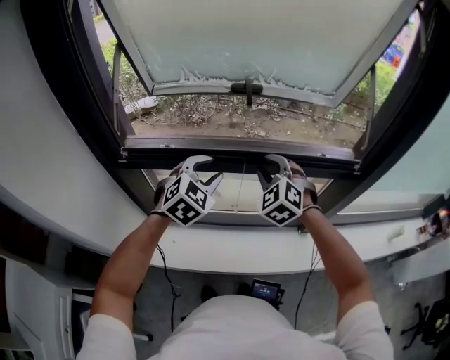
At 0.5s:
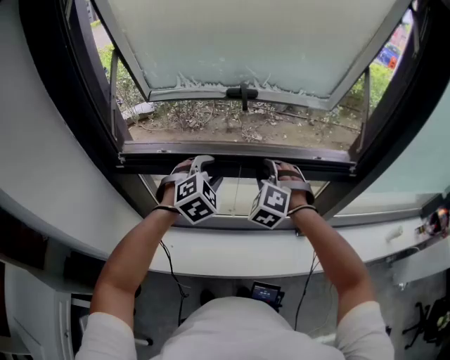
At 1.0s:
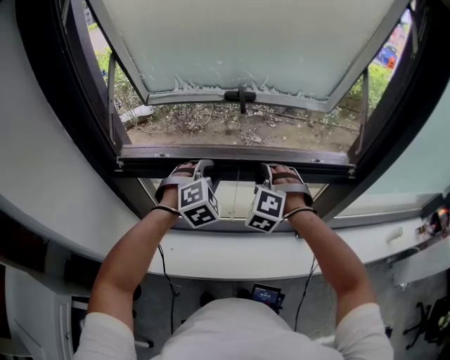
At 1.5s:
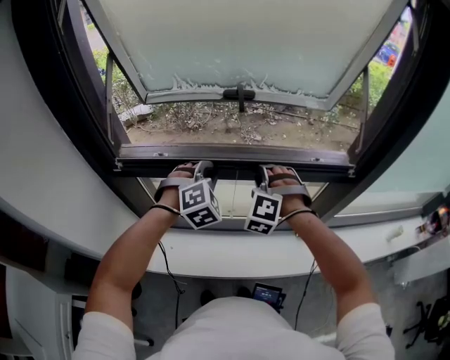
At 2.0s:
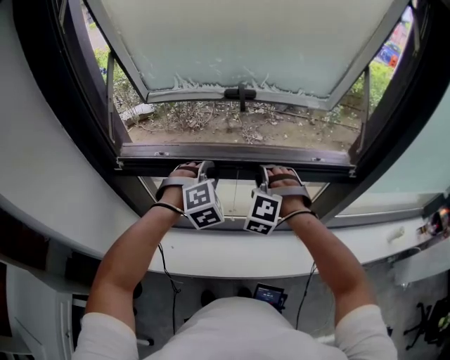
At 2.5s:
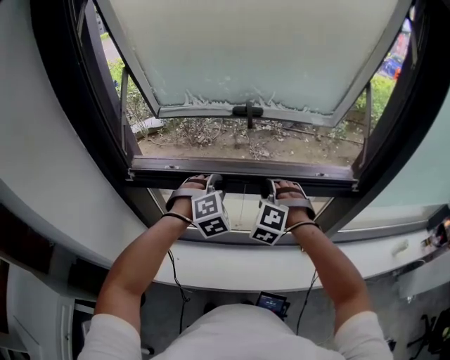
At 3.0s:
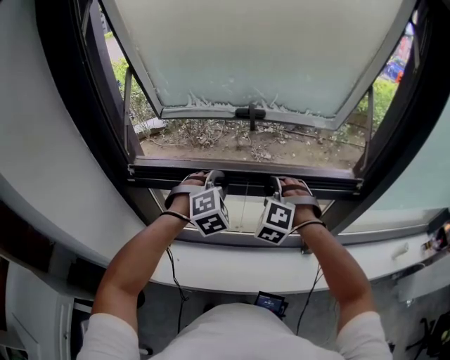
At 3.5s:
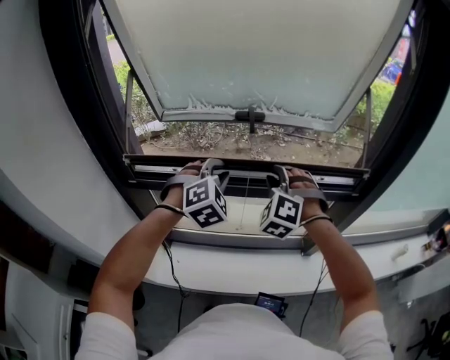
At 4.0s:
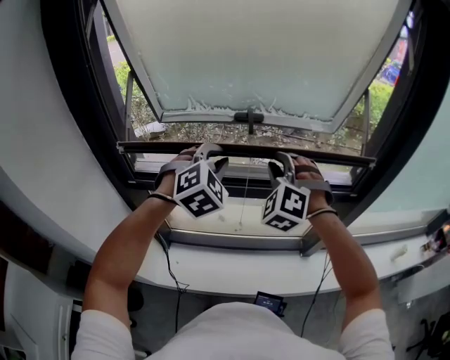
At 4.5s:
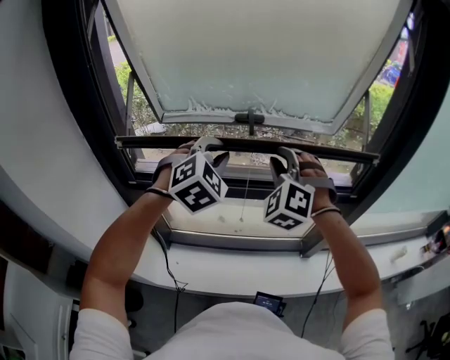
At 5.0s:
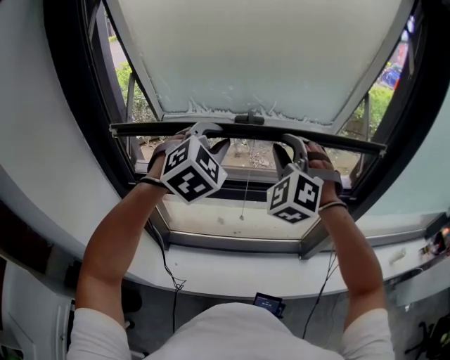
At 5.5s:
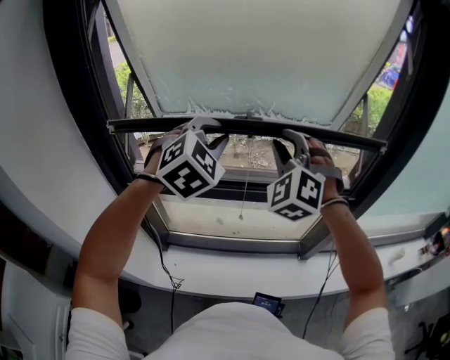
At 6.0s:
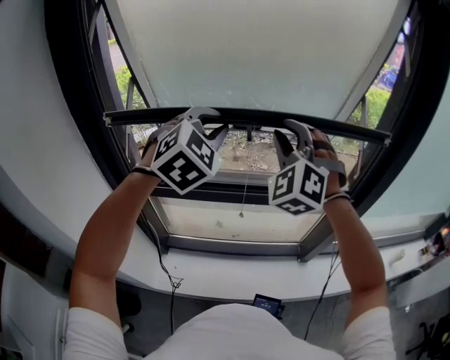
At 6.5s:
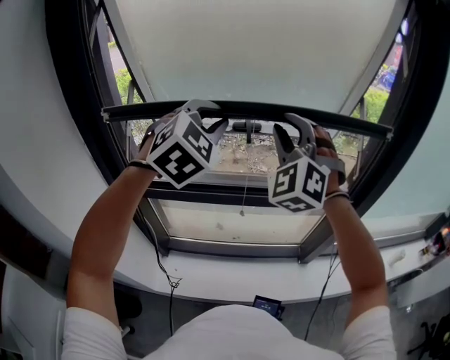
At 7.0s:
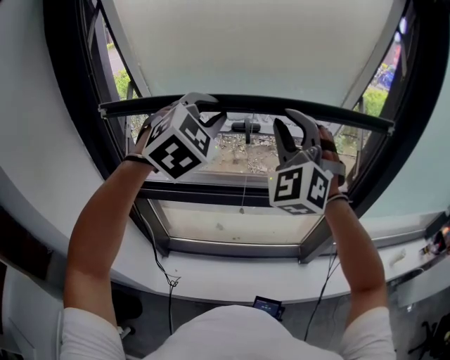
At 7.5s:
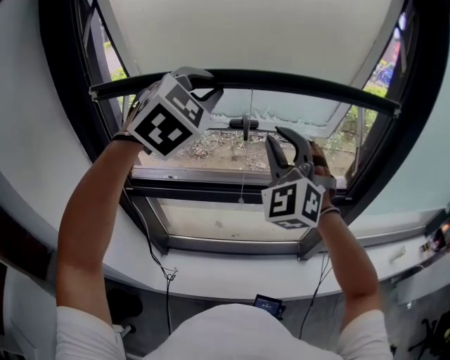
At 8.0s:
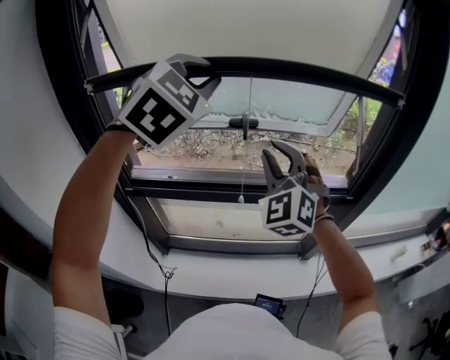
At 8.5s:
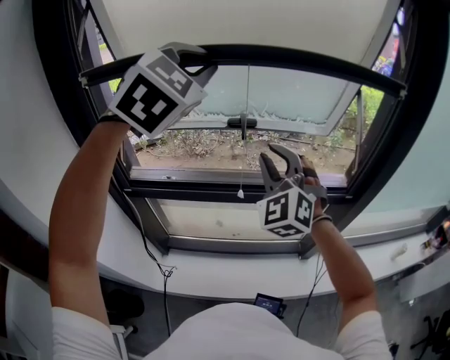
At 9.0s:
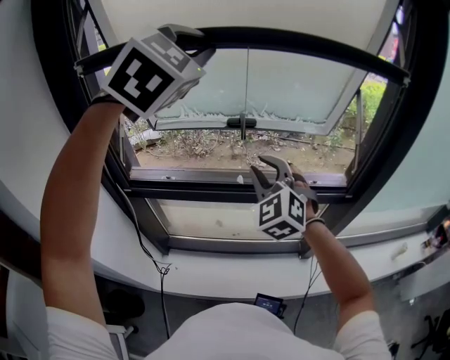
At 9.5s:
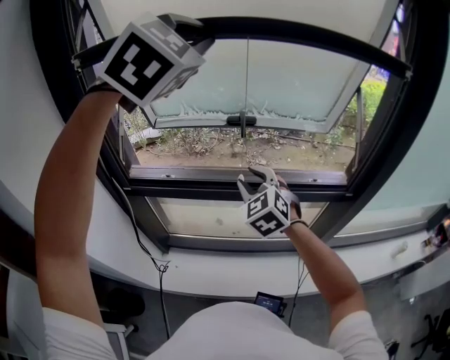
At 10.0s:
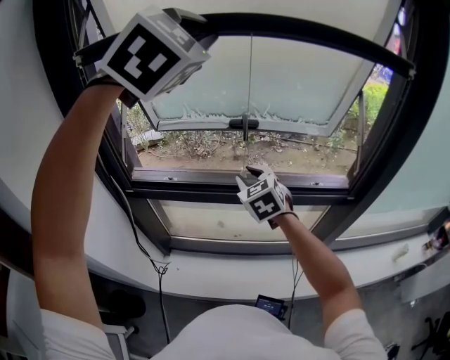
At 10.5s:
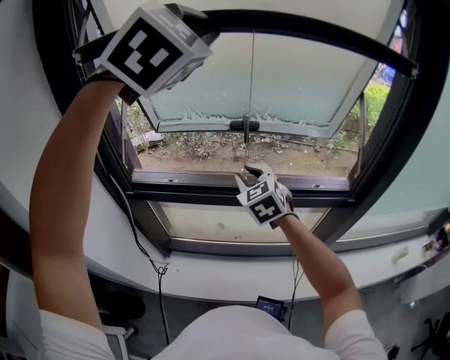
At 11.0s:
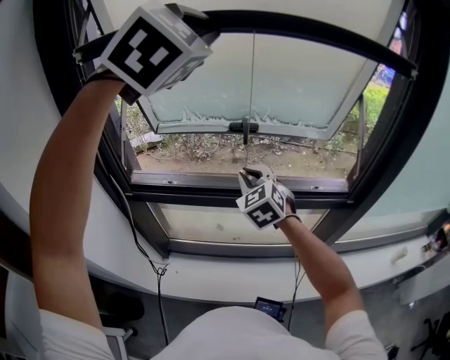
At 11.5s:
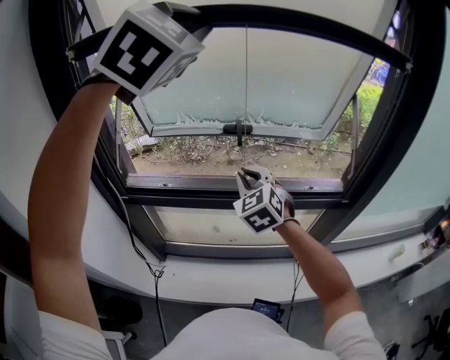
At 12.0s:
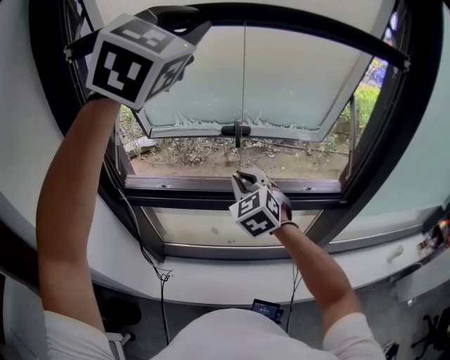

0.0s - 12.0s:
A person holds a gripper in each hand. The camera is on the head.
0.0s - 2.0s: The left gripper changes its angle by some 30 degrees, and closes up; the right gripper swivels roughly 30 degrees.
2.0s - 4.0s: The two grippers go roughly 15 cm upward.
4.0s - 6.0s: Both grippers move upward, some 15 cm.
6.0s - 8.0s: The left gripper moves upward, about 10 cm.
8.0s - 10.0s: The left gripper travels upward by roughly 10 cm, while the right gripper goes roughly 15 cm downward, and turns by about 40 degrees.
10.0s - 12.0s: The right gripper closes.

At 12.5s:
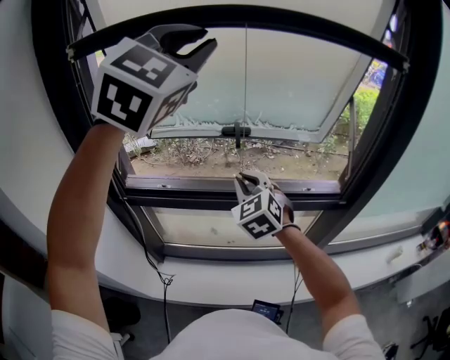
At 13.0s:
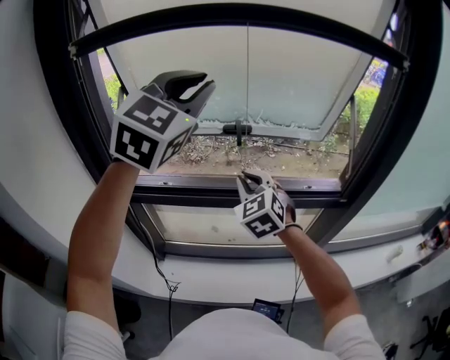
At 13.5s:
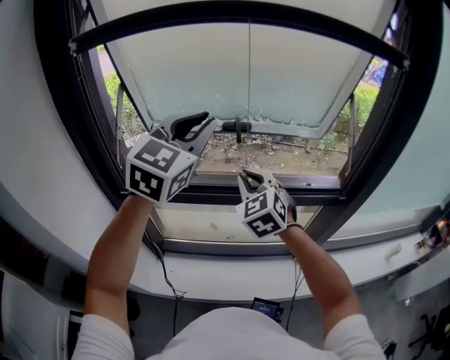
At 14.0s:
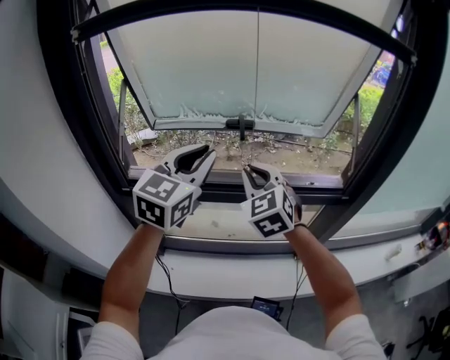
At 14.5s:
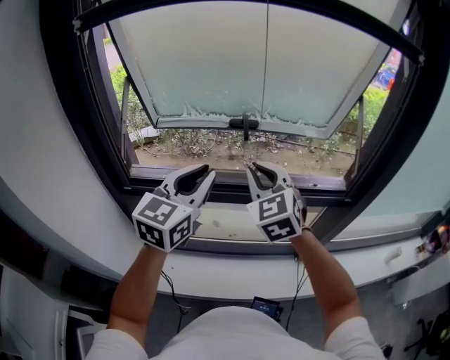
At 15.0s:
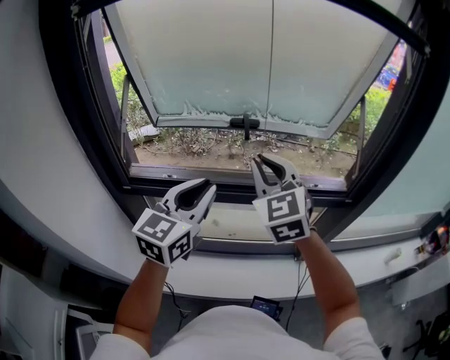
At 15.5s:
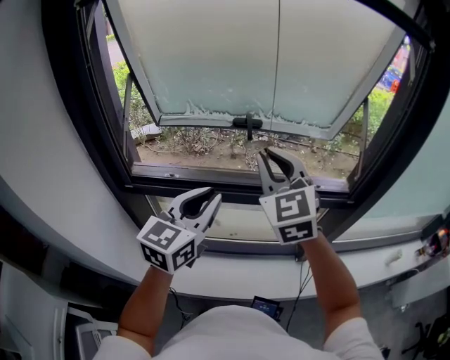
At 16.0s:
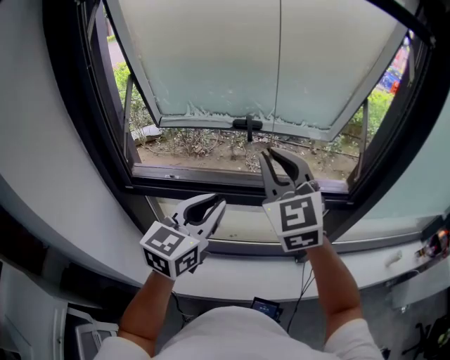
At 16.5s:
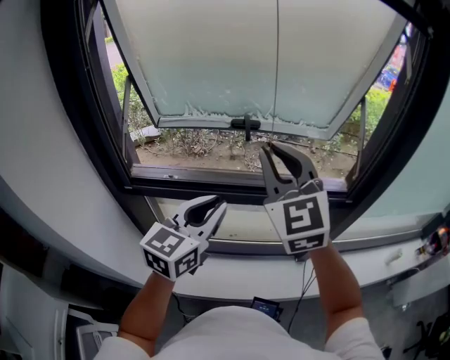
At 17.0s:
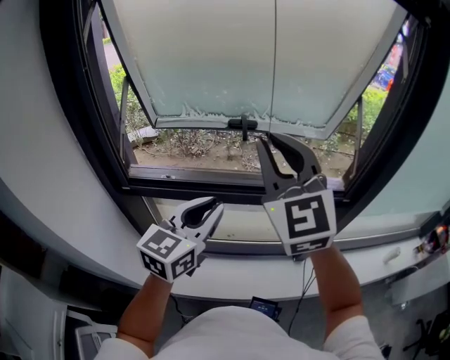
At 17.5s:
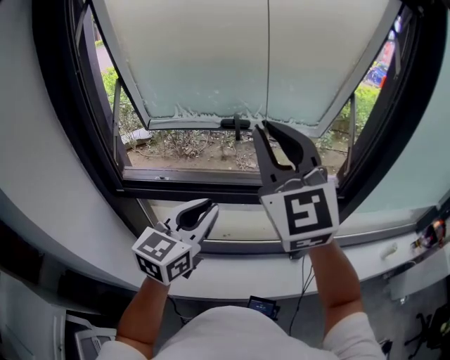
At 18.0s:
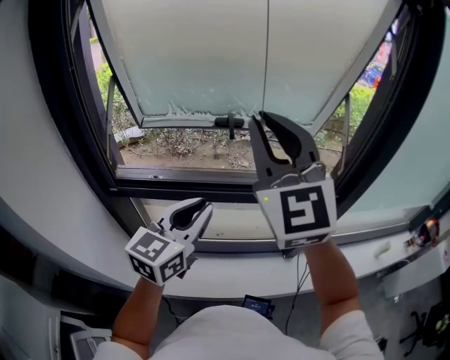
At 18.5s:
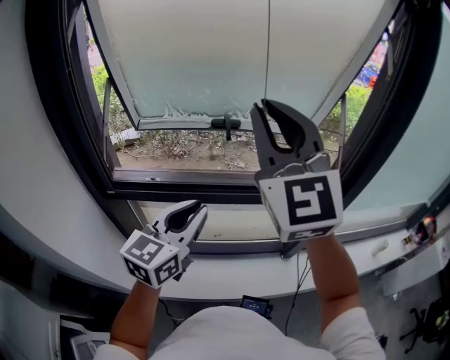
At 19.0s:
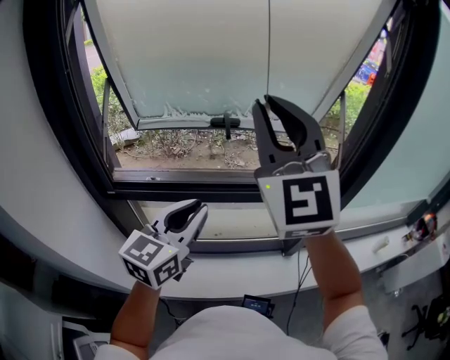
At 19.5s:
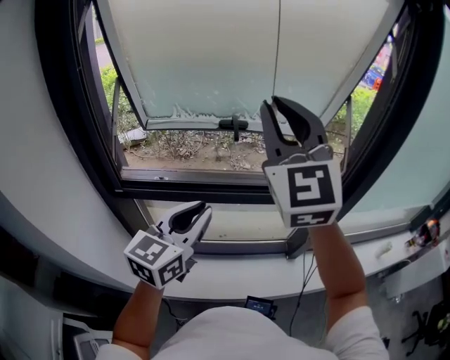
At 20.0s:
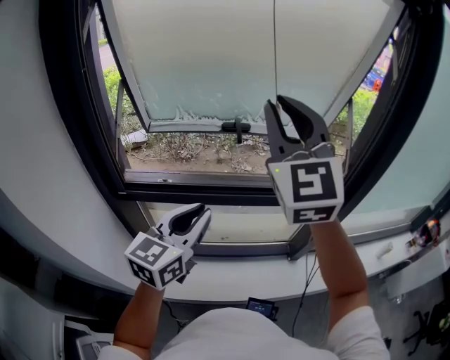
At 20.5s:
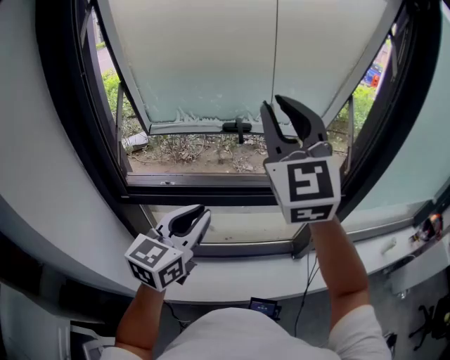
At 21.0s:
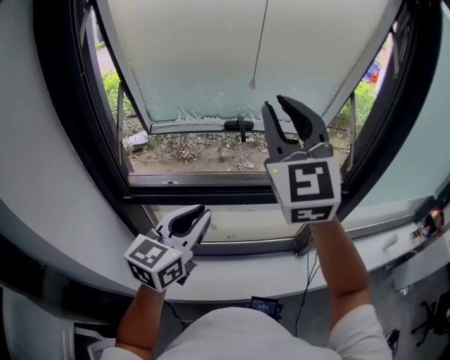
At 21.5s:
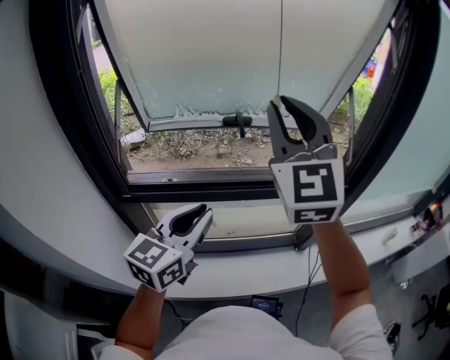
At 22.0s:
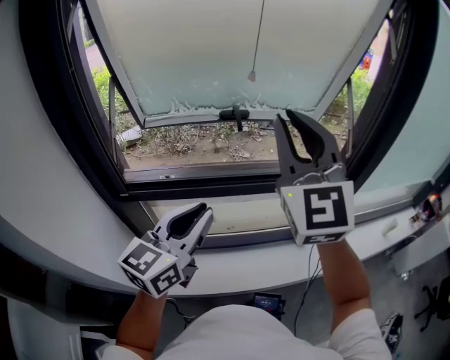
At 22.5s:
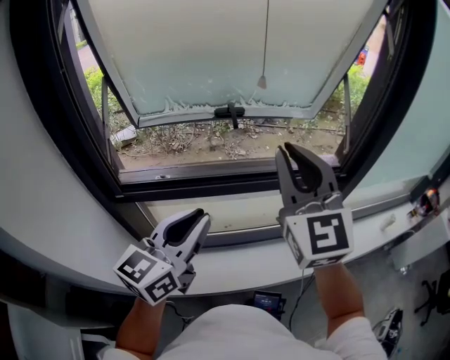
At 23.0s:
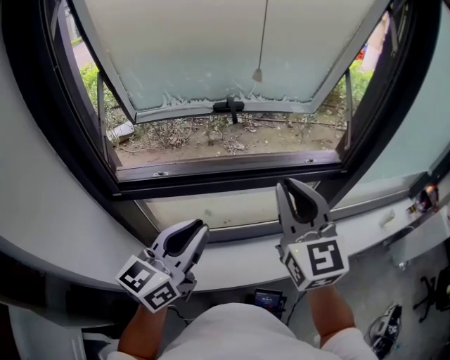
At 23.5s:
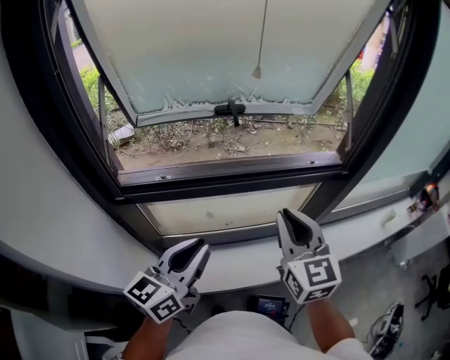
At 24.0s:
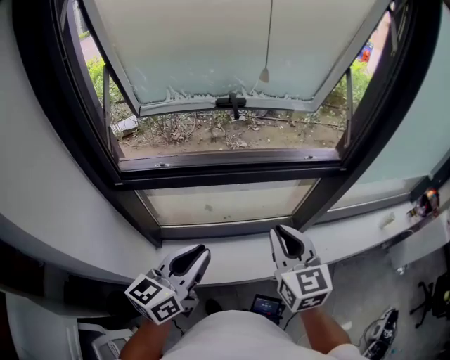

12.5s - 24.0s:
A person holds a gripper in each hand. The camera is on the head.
12.5s - 14.5s: The left gripper is displaced downward by about 30 cm, and twists some 40 degrees counterclockwise, seen from behind.
14.5s - 16.5s: The right gripper heads upward, covering roughly 10 cm. The left gripper changes place by some 5 cm.
16.5s - 18.5s: The right gripper heads upward, covering some 10 cm.
18.5s - 22.0s: The grippers stay close to where they were, moving slightly.
22.0s - 24.0s: The right gripper heads downward, covering approximately 25 cm, and changes its angle by some 40 degrees. Meanwhile the left gripper shifts roughly 15 cm downward and backward.

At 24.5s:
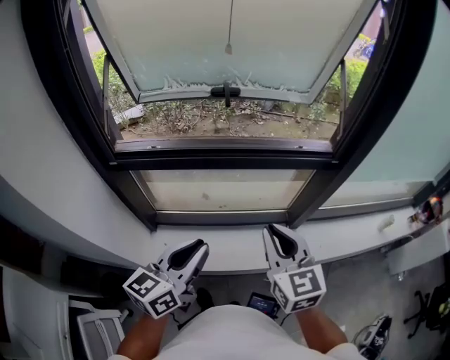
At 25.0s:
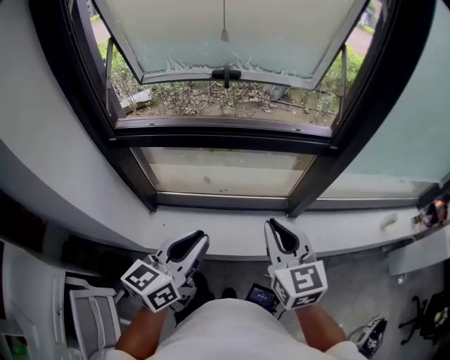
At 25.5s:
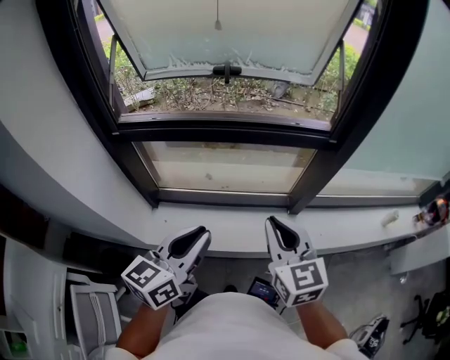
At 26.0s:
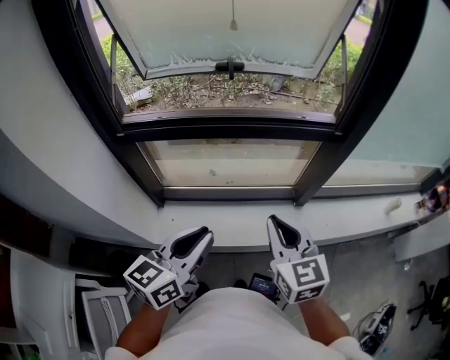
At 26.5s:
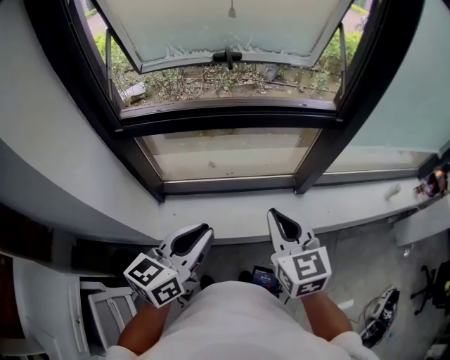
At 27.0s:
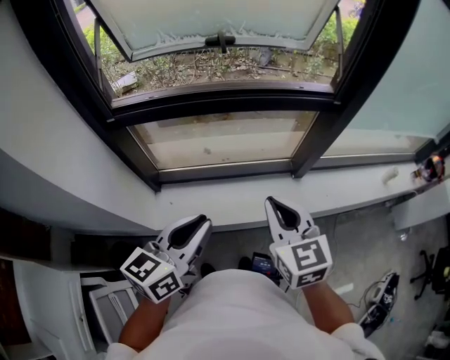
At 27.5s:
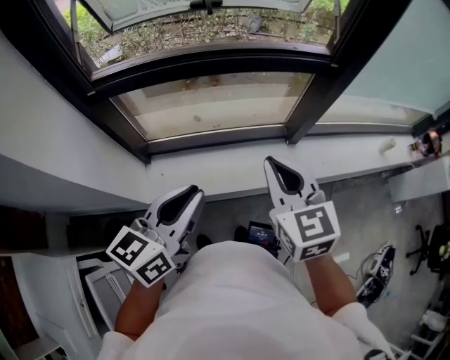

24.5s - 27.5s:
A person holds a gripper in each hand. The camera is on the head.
24.5s - 26.0s: Both grippers travel together backward, roughly 5 cm.
26.0s - 27.5s: The grippers make only small movements.

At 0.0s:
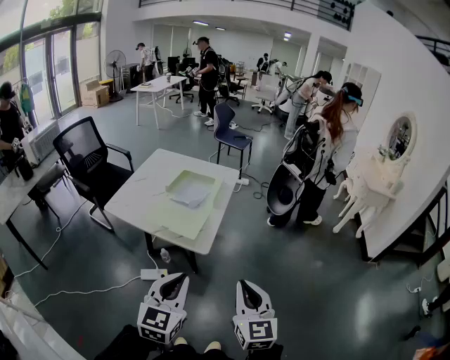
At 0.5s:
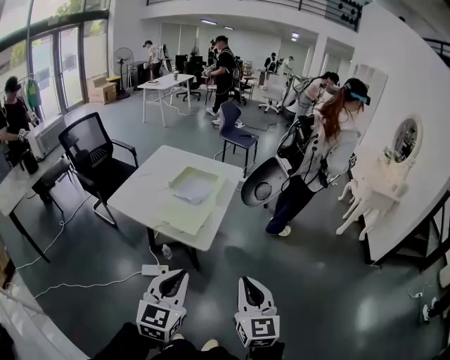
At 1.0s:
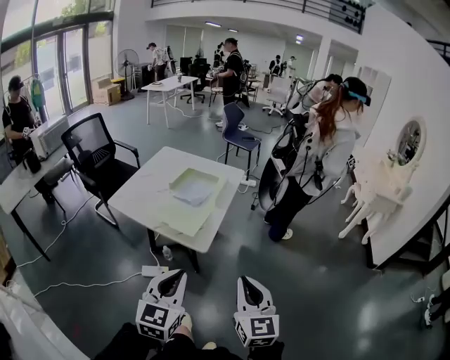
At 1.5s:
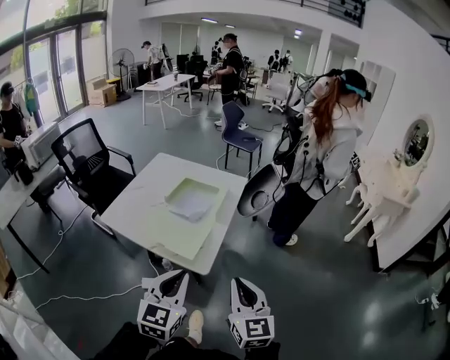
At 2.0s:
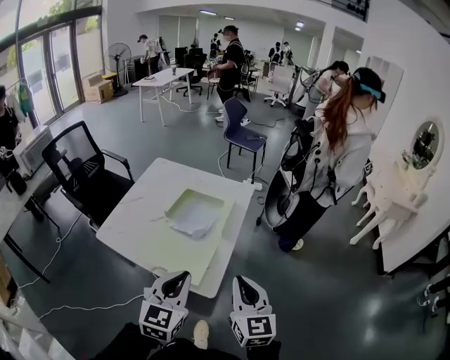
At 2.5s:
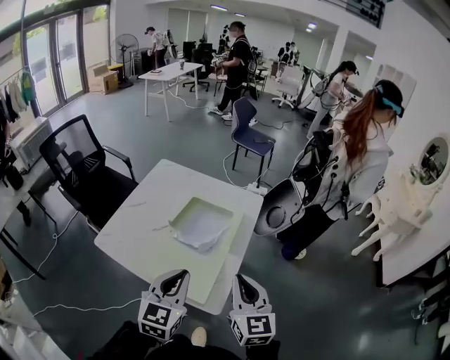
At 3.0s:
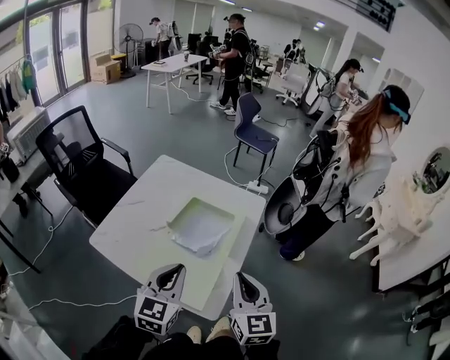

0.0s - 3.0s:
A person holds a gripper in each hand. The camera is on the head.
0.0s - 1.5s: Both grippers move forward, about 15 cm.
1.5s - 3.0s: Both grippers travel together forward, roughly 35 cm.
